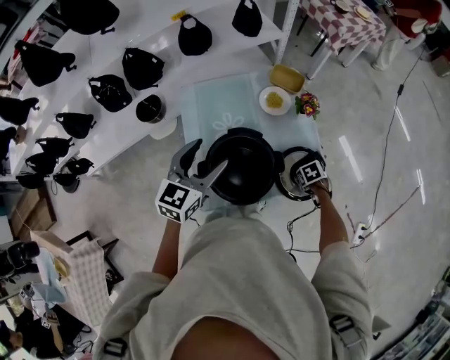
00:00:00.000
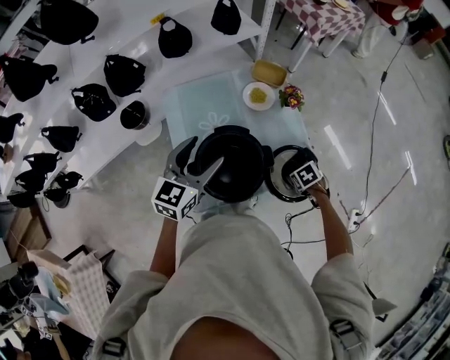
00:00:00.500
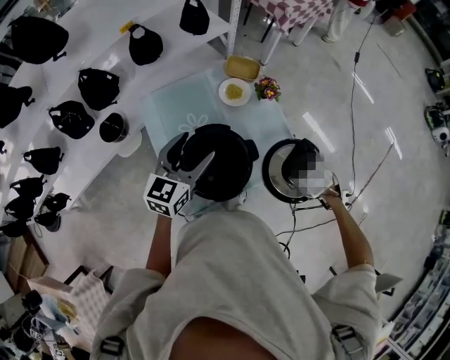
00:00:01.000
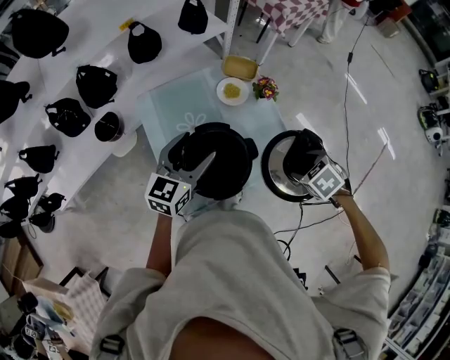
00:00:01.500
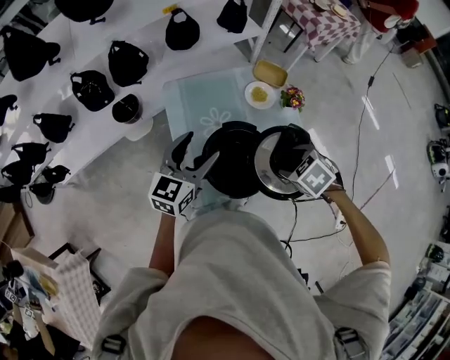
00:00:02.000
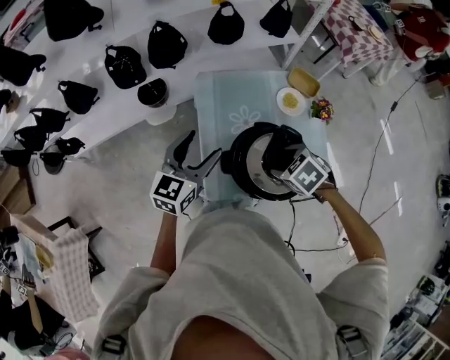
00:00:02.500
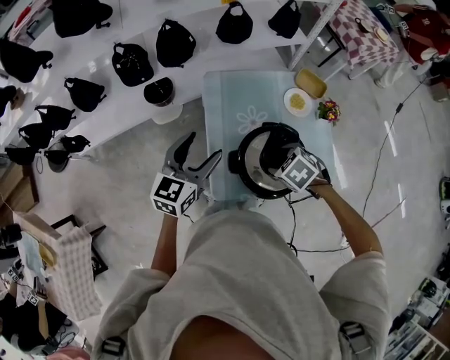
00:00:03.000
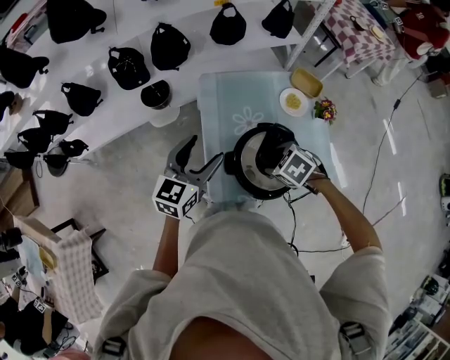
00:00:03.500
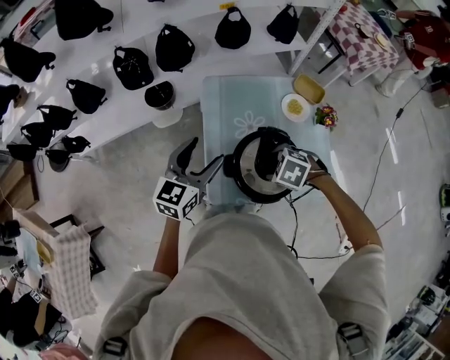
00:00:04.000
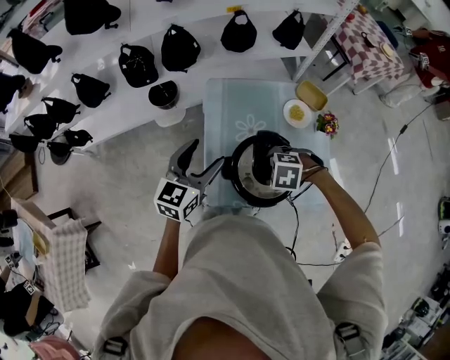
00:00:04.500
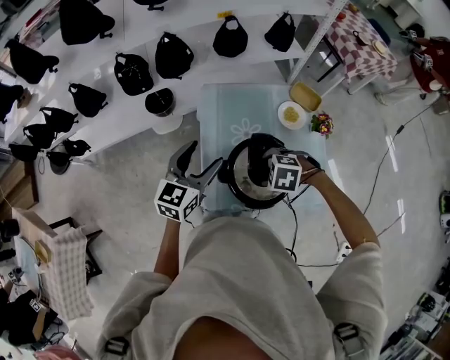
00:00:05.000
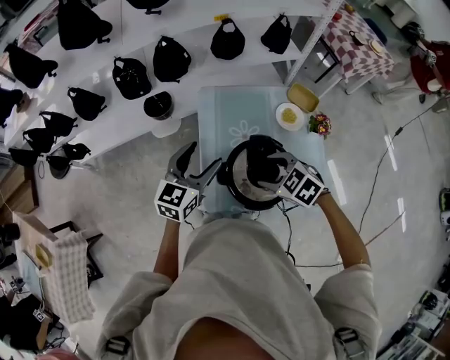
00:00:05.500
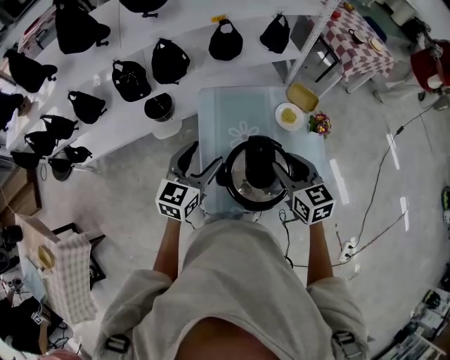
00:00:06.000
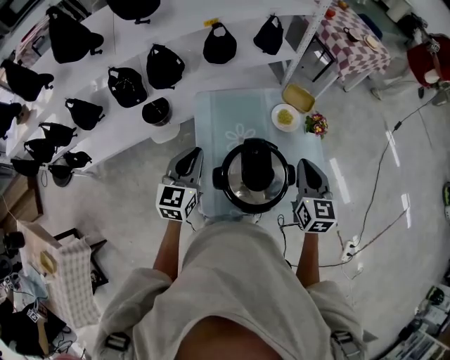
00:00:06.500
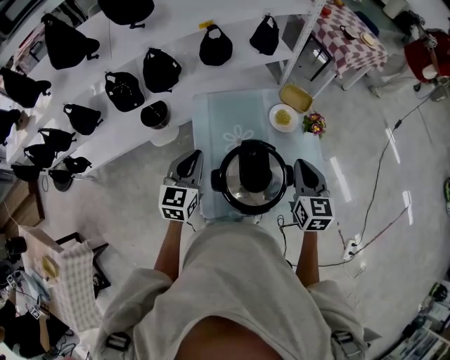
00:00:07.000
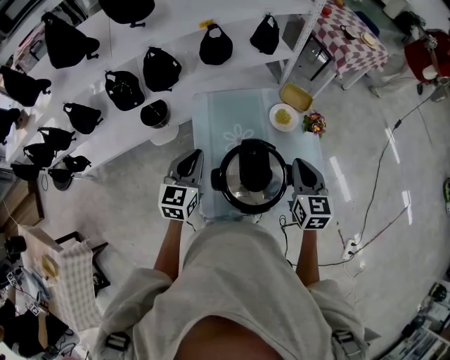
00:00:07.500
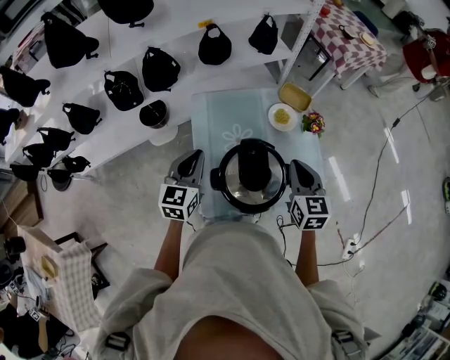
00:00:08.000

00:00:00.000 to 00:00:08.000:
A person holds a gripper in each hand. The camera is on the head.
00:00:00.000 to 00:00:02.000: The right gripper shifts roughly 25 cm upward, and rotates about 30 degrees.
00:00:02.000 to 00:00:04.000: The left gripper moves roughly 10 cm. The right gripper moves roughly 15 cm, and changes its angle by about 30 degrees.
00:00:04.000 to 00:00:06.000: The right gripper moves upward, approximately 10 cm, and points its fingers about 50 degrees further upward.
00:00:06.000 to 00:00:08.000: The left gripper closes. Meanwhile the right gripper heads to the right, covering some 5 cm, and closes up.

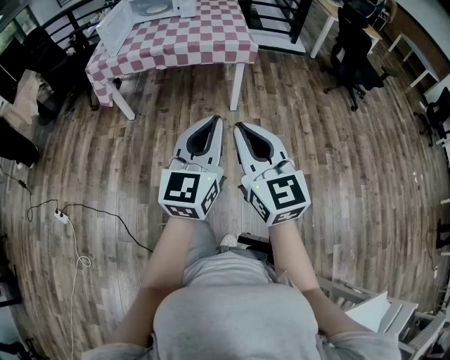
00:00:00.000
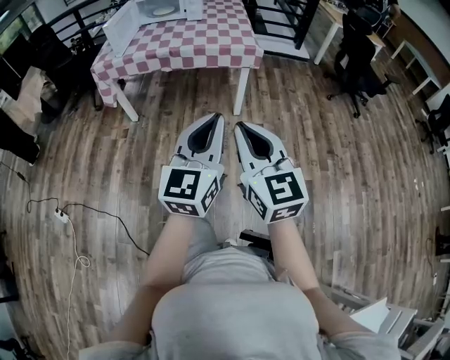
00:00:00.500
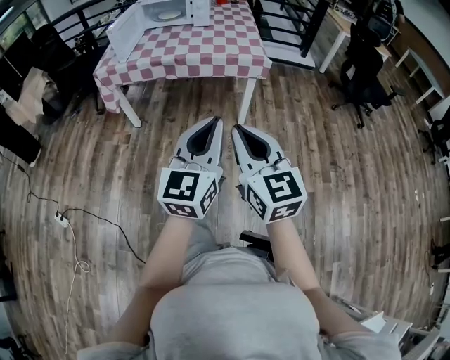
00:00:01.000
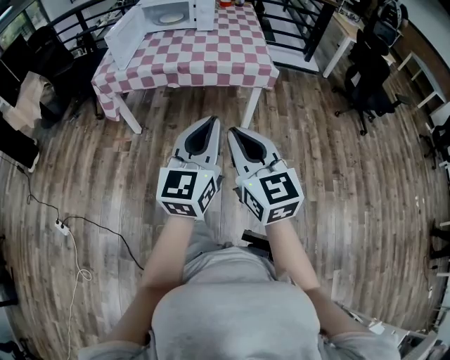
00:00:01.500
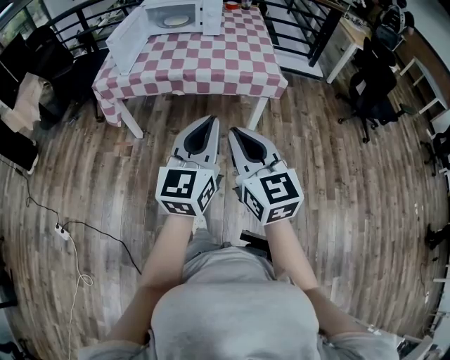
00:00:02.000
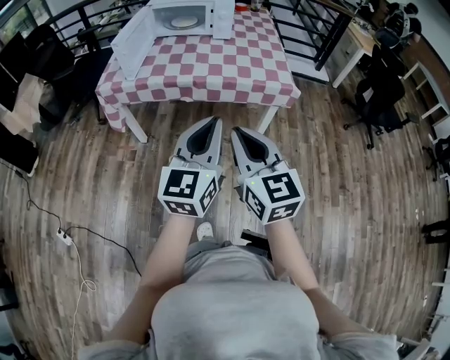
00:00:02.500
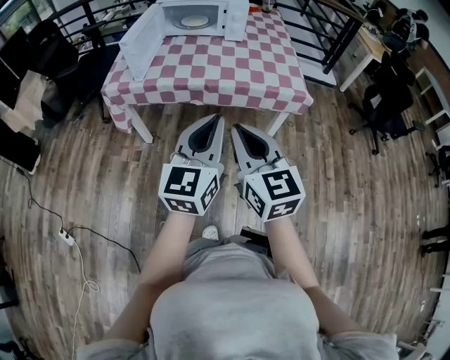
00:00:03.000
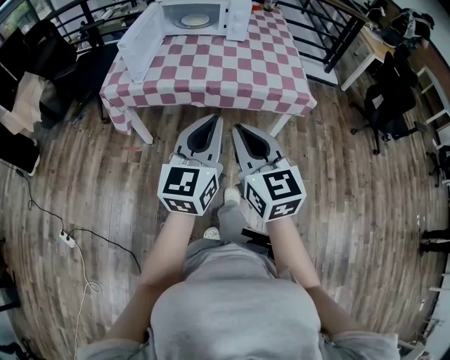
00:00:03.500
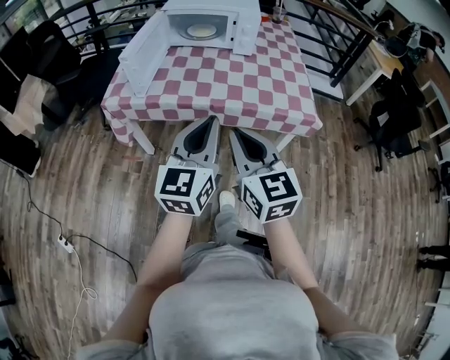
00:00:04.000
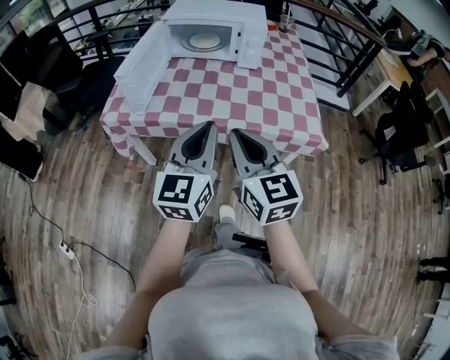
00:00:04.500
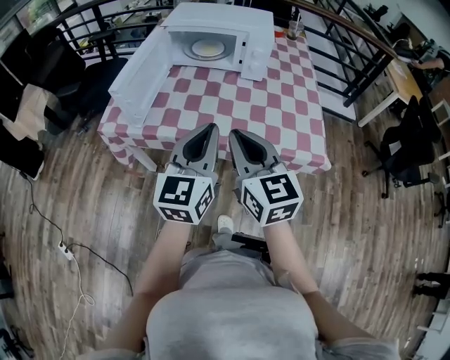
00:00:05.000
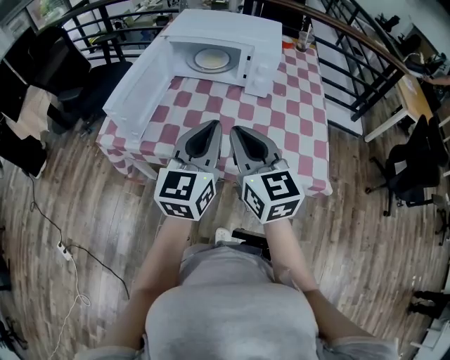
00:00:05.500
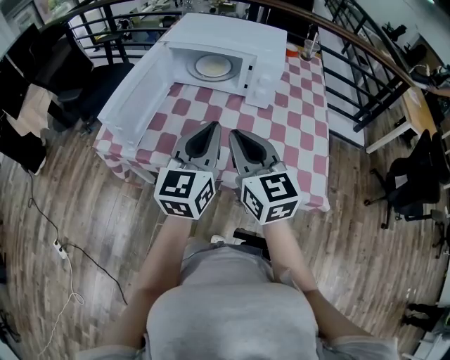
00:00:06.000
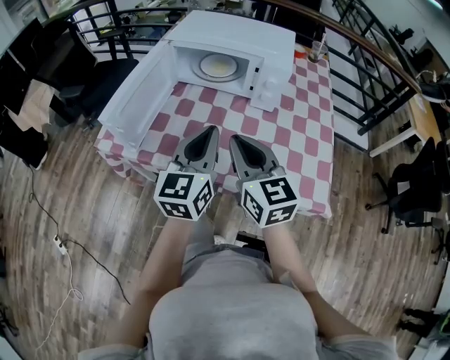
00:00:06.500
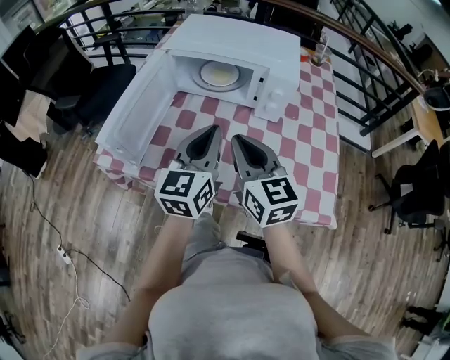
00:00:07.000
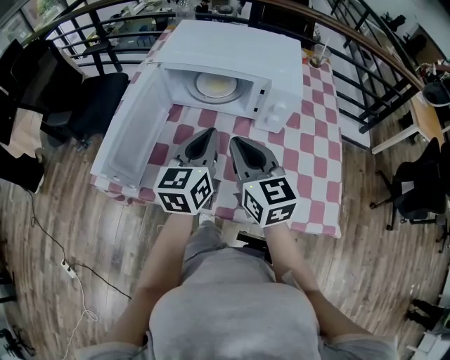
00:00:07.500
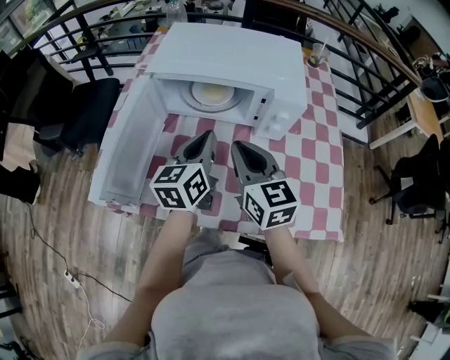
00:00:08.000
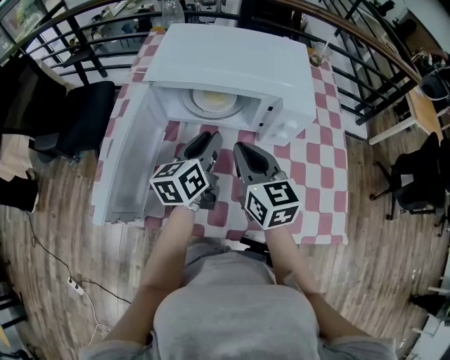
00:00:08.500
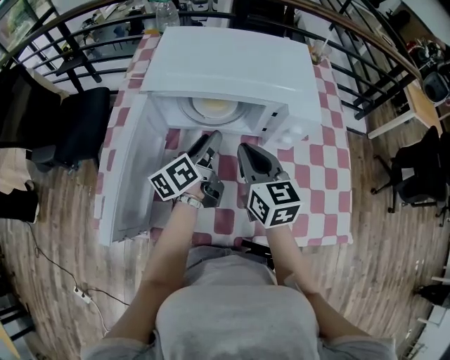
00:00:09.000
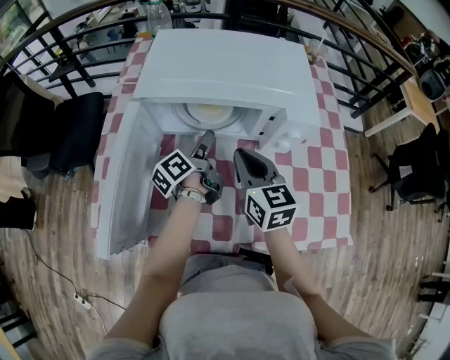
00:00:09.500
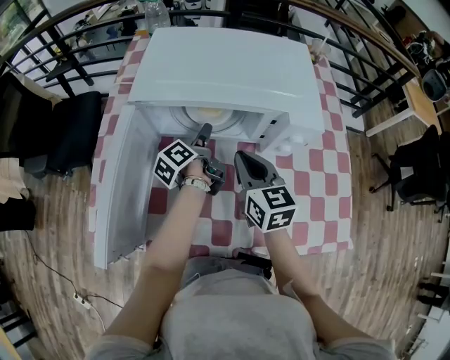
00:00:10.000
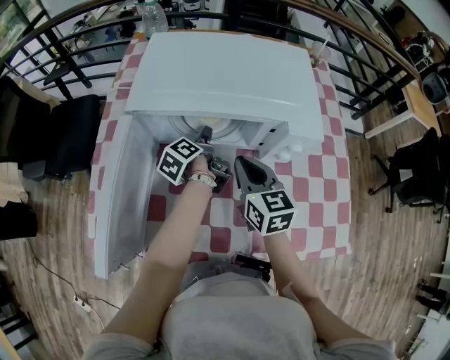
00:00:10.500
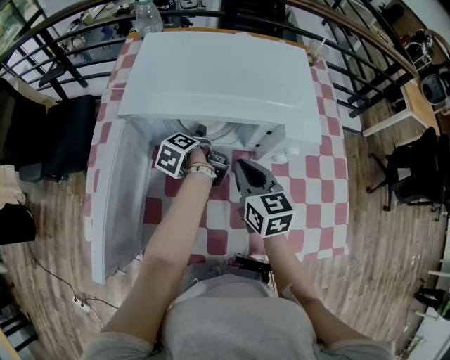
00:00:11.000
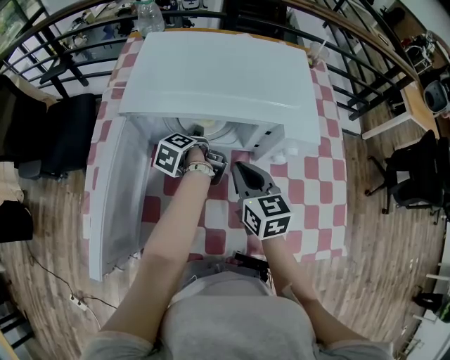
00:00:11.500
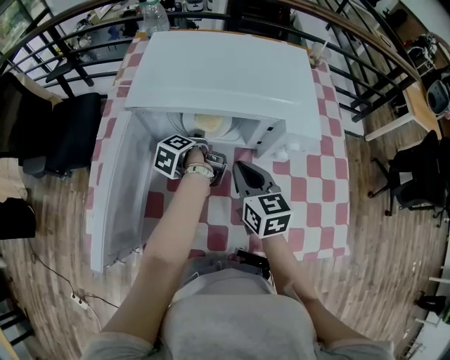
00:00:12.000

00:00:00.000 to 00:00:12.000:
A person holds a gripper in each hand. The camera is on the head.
00:00:00.000 to 00:00:02.000: Both grippers move forward and to the left, approximately 25 cm.
00:00:02.000 to 00:00:04.000: The two grippers go some 25 cm forward and to the left.
00:00:04.000 to 00:00:06.000: The two grippers go about 30 cm forward.
00:00:06.000 to 00:00:08.000: The right gripper is displaced forward by some 20 cm. The left gripper travels forward and downward by some 25 cm, and swivels roughly 20 degrees.
00:00:08.000 to 00:00:10.000: The right gripper heads forward and downward, covering some 10 cm; the left gripper shifts roughly 20 cm downward and forward, twists roughly 50 degrees counterclockwise, seen from behind, and opens up.
00:00:10.000 to 00:00:12.000: The left gripper turns by roughly 20 degrees, and closes its fingers.

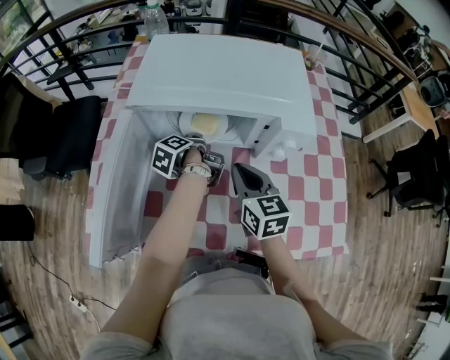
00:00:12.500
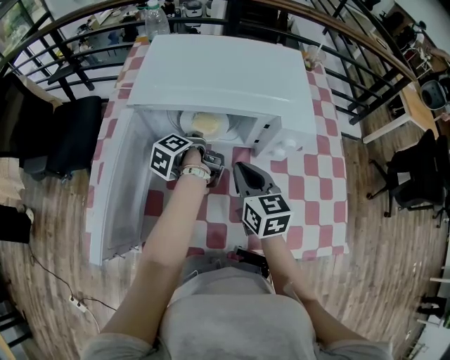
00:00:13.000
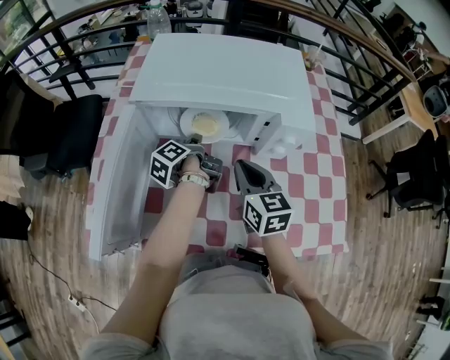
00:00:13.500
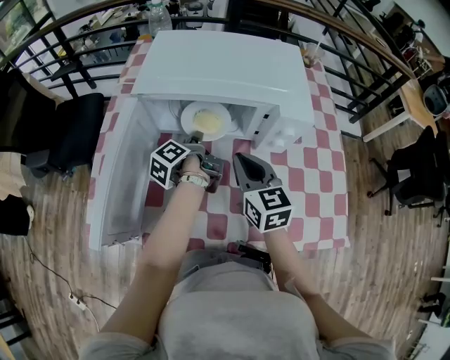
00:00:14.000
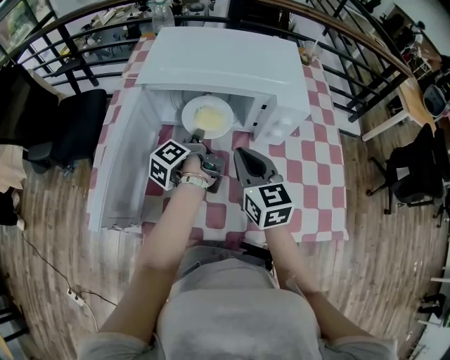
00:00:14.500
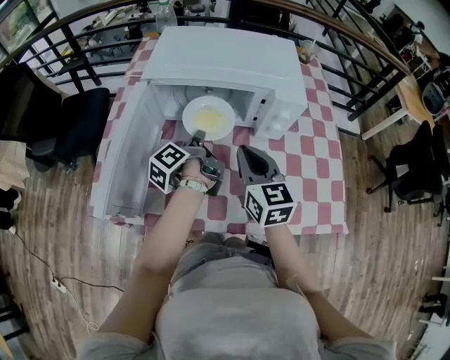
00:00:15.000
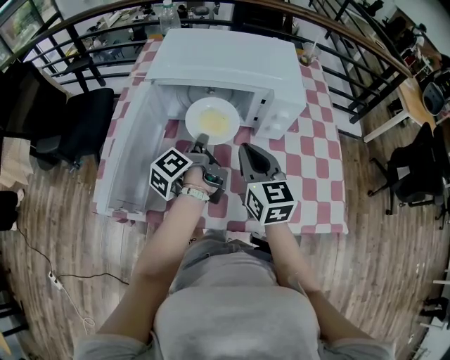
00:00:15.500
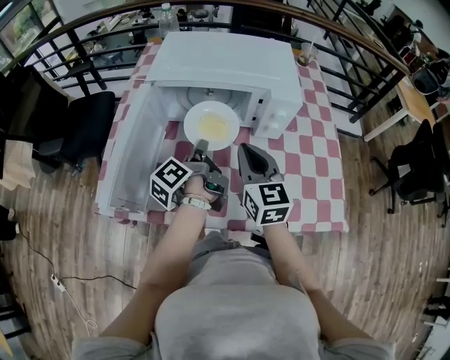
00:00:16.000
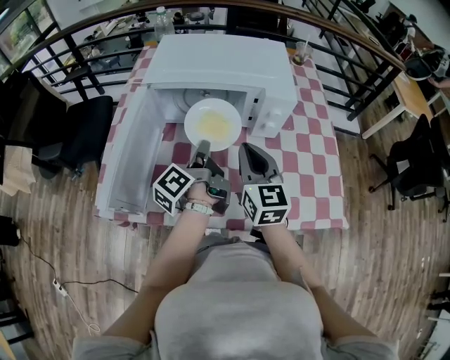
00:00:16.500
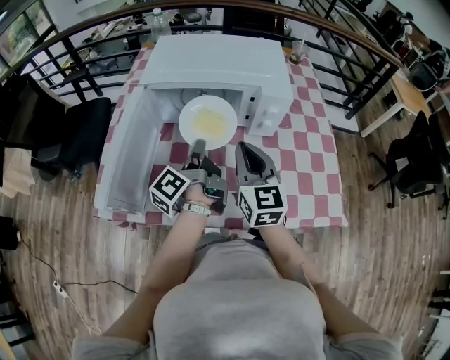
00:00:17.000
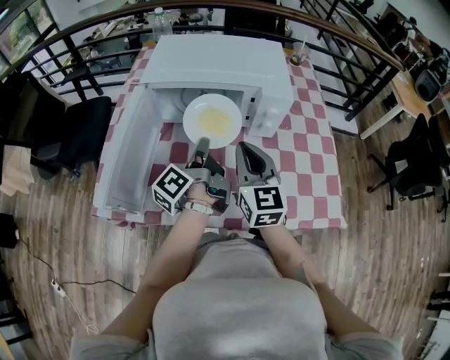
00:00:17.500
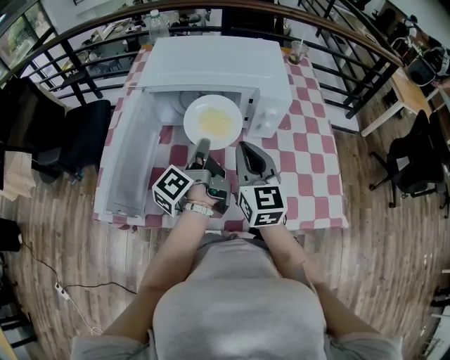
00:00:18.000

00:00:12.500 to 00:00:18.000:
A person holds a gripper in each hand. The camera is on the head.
00:00:12.500 to 00:00:14.500: The left gripper moves backward and upward, roughly 10 cm. Meanwhile the right gripper moves approximately 5 cm.
00:00:14.500 to 00:00:16.000: The left gripper travels backward and upward by about 10 cm.
00:00:16.000 to 00:00:18.000: The grippers move only a little.

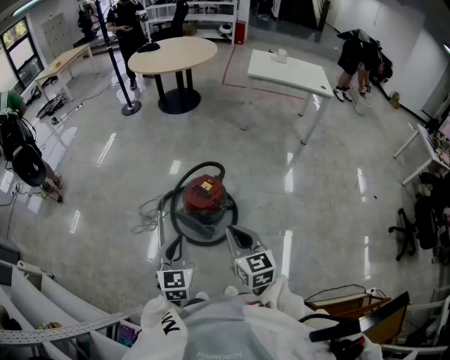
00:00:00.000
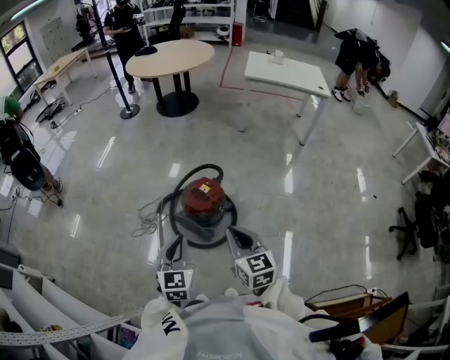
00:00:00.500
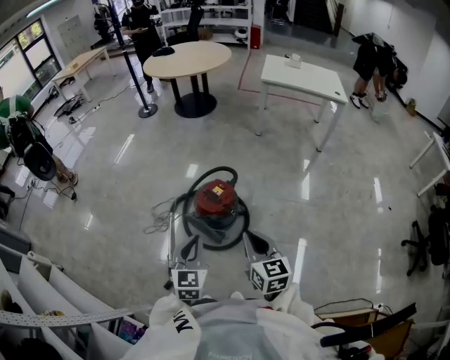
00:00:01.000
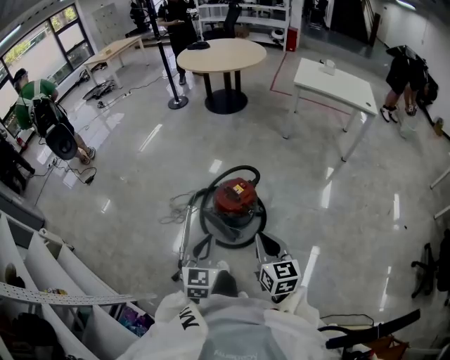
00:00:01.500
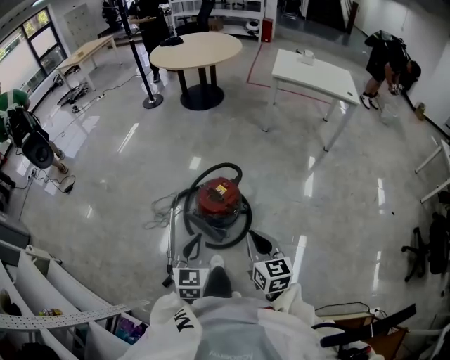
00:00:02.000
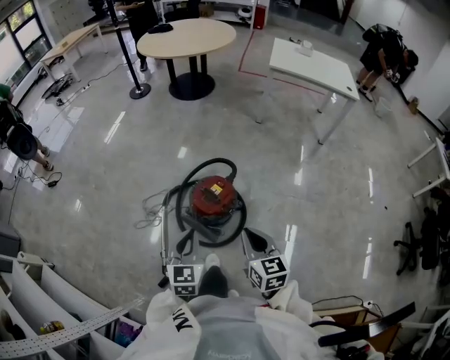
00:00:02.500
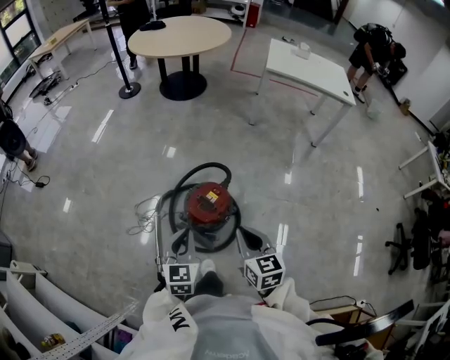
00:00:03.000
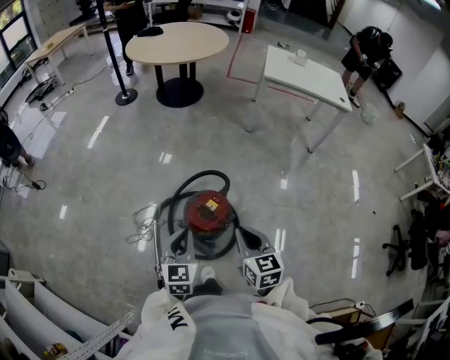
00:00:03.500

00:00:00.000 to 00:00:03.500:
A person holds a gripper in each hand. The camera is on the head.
00:00:00.000 to 00:00:02.000: The left gripper shifts by about 5 cm, while the right gripper goes about 5 cm to the right.
00:00:02.000 to 00:00:03.500: Both grippers move forward, some 15 cm.
